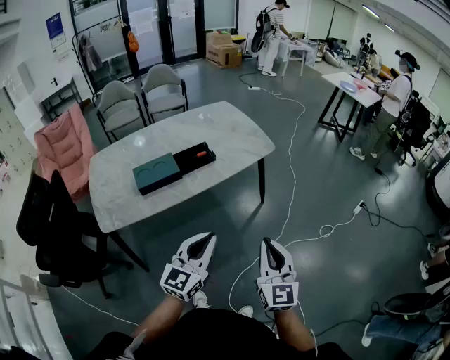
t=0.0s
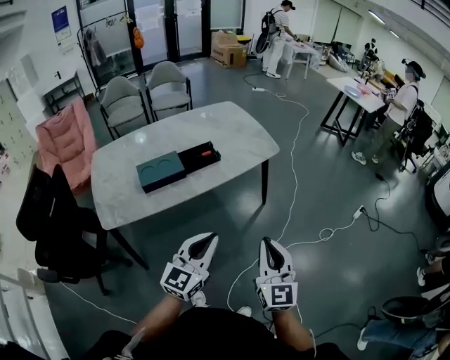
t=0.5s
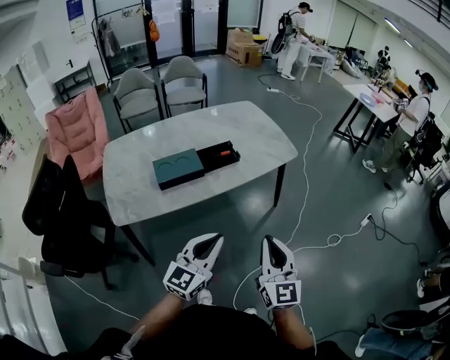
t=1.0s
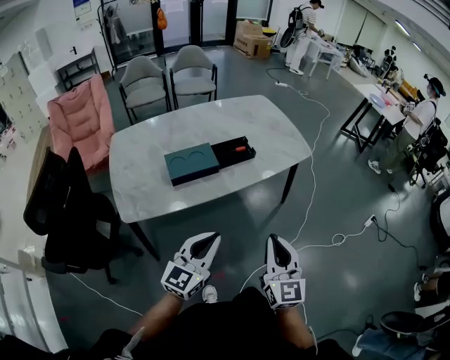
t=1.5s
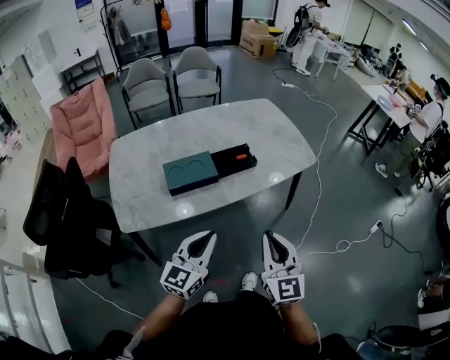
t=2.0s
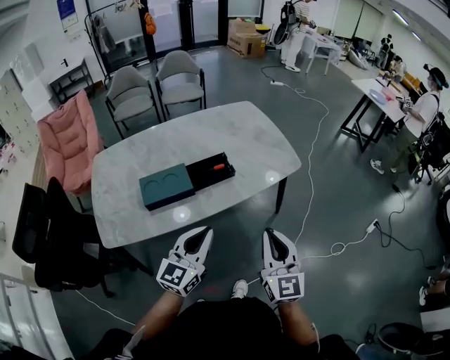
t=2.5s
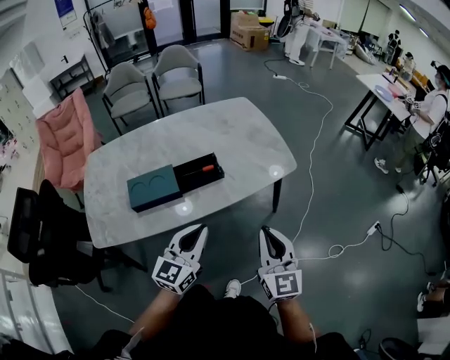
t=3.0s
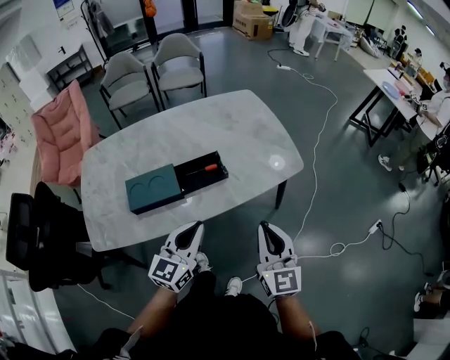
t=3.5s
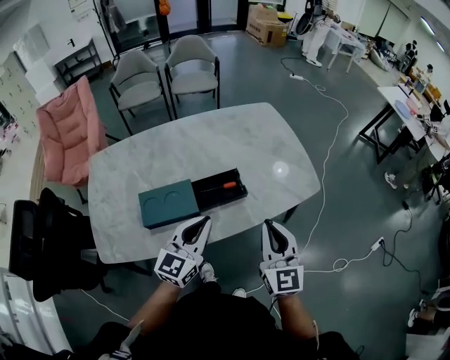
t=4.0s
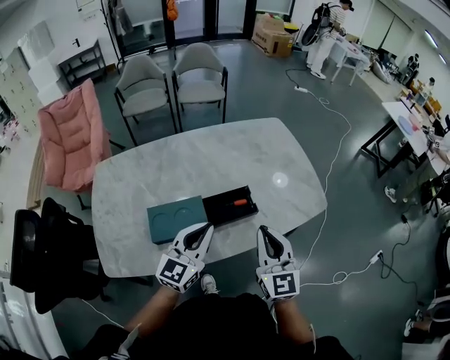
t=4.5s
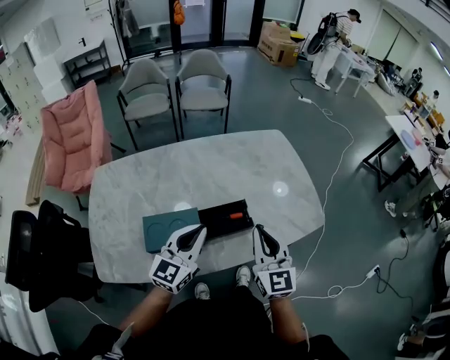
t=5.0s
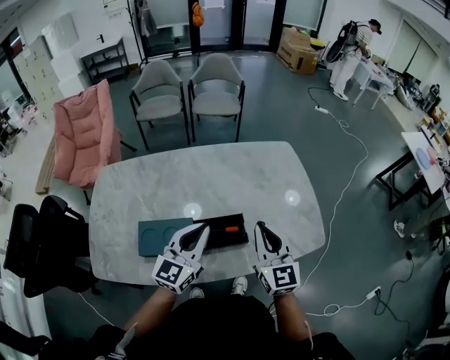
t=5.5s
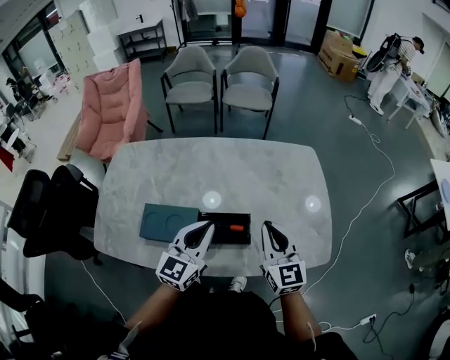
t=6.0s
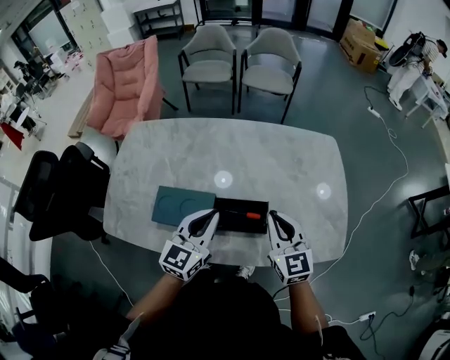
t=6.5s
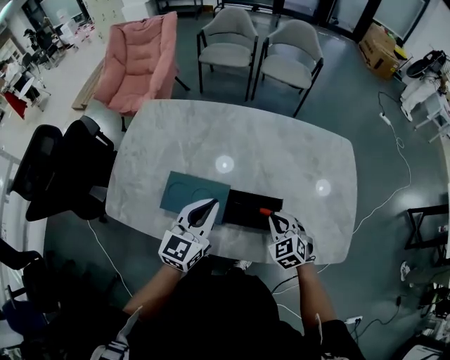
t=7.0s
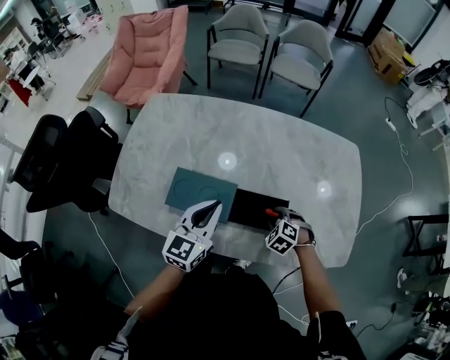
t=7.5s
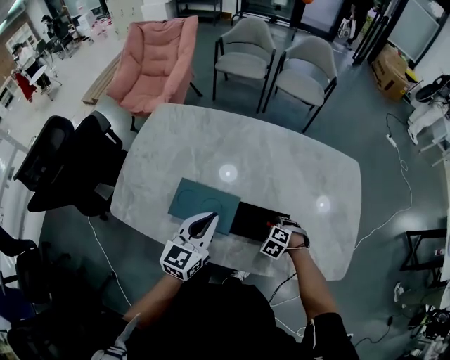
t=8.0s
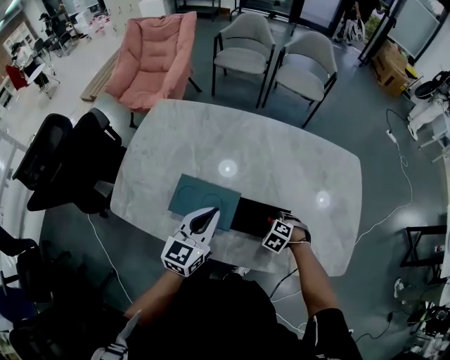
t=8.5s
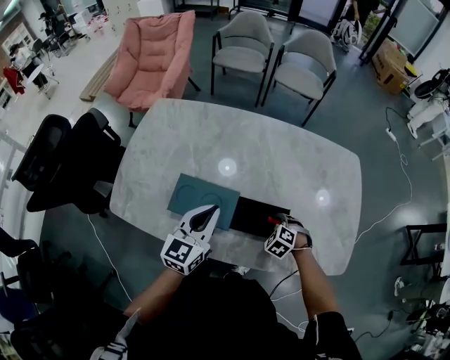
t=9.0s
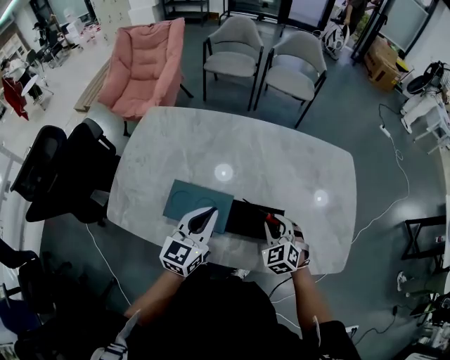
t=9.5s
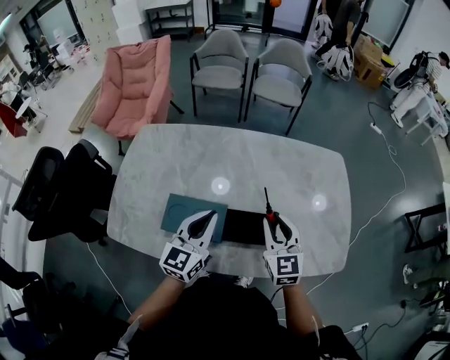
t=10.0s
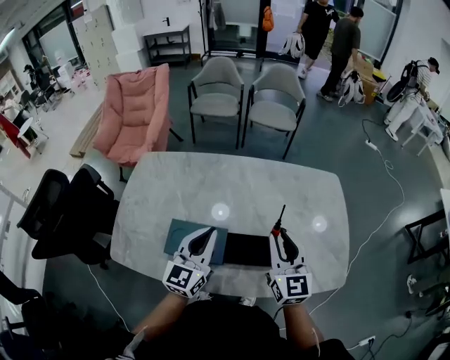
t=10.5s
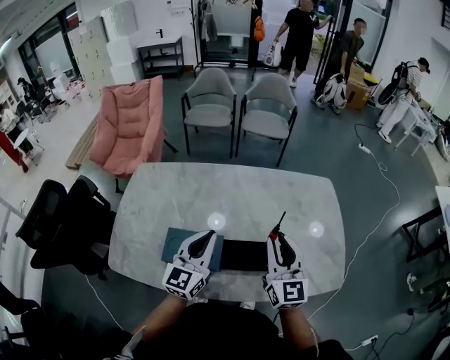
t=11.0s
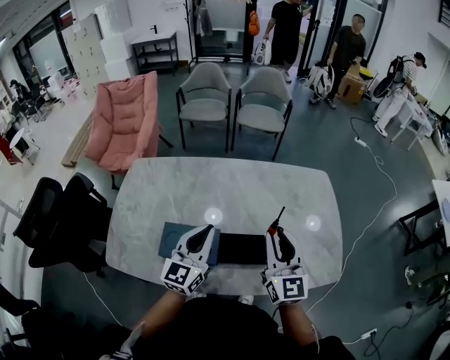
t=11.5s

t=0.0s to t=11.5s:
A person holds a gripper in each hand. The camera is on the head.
t=0.0s to t=2.0s: Both grippers travel together to the left and forward, roughly 20 cm.
t=2.0s to t=4.0s: Both grippers move forward, roughly 25 cm.
t=4.0s to t=6.0s: The right gripper is displaced forward by some 20 cm, and changes its angle by about 30 degrees, while the left gripper moves forward, some 15 cm, and changes its angle by approximately 20 degrees.
t=6.0s to t=7.5s: The right gripper goes about 25 cm downward, angles its fingers downward, by roughly 60 degrees, and opens its fingers. The left gripper goes some 15 cm to the left and downward.
t=7.5s to t=9.5s: The right gripper travels upward by roughly 10 cm, and changes its angle by approximately 30 degrees.
t=9.5s to t=11.5s: The right gripper travels upward by roughly 20 cm, and tips its fingers upward by some 40 degrees; the left gripper goes some 5 cm upward.

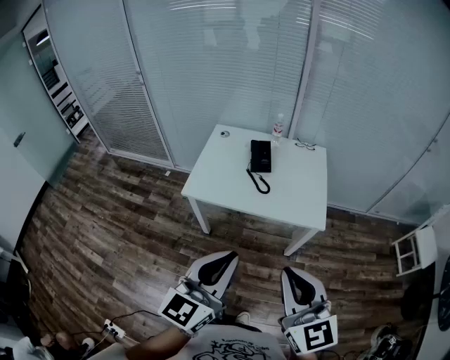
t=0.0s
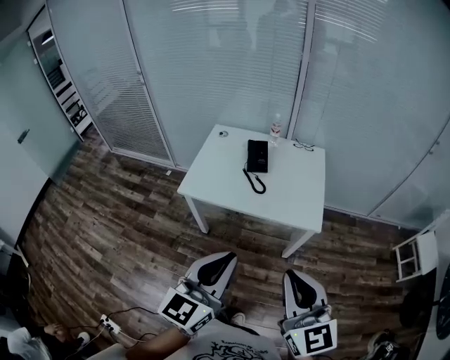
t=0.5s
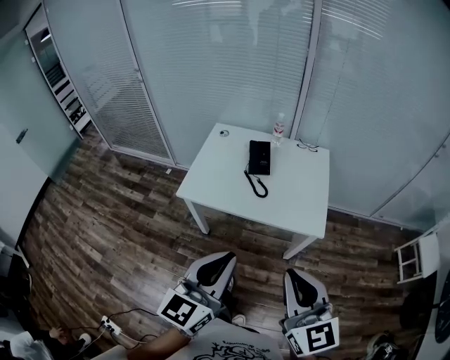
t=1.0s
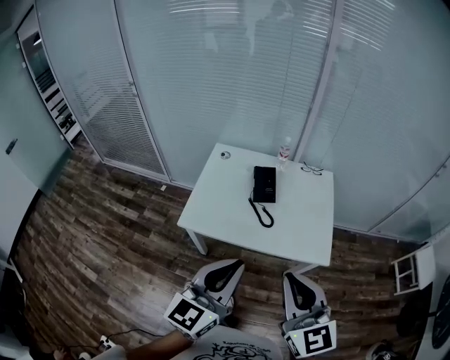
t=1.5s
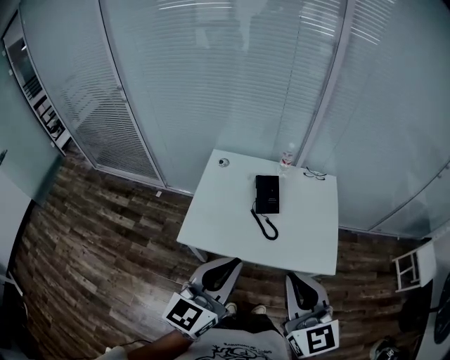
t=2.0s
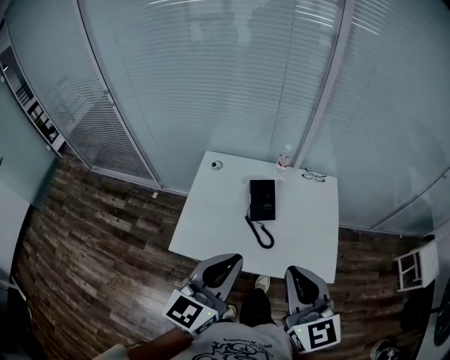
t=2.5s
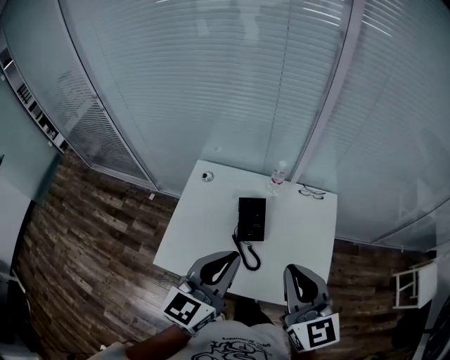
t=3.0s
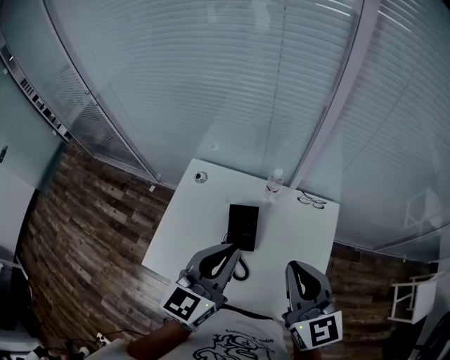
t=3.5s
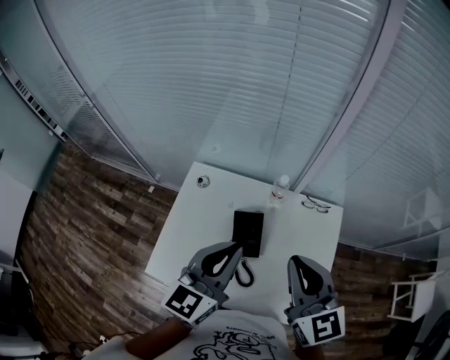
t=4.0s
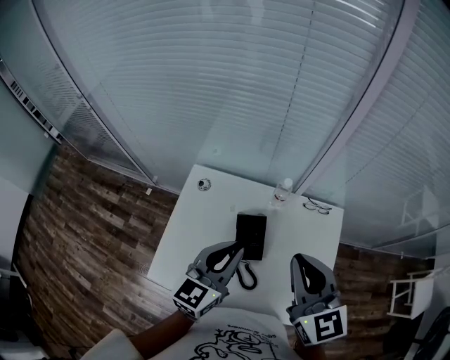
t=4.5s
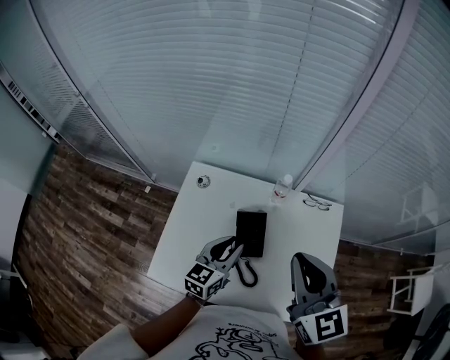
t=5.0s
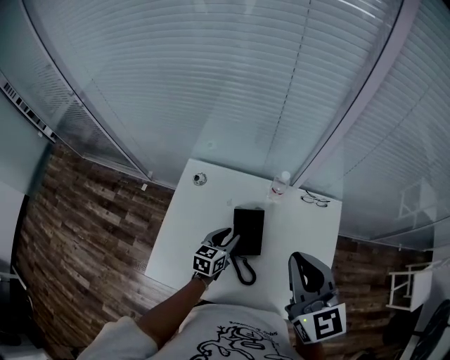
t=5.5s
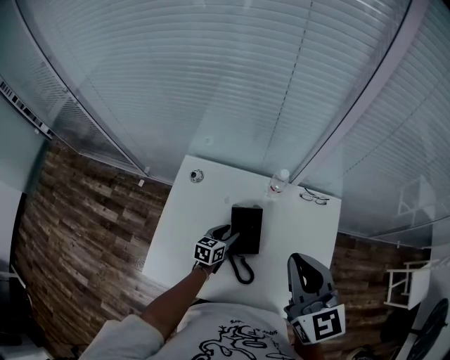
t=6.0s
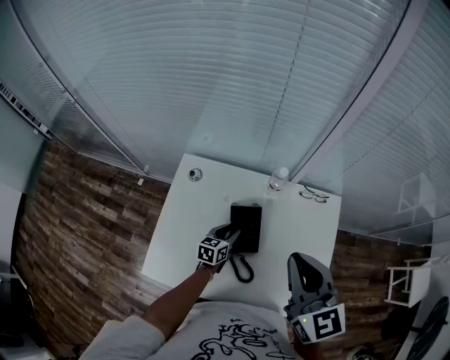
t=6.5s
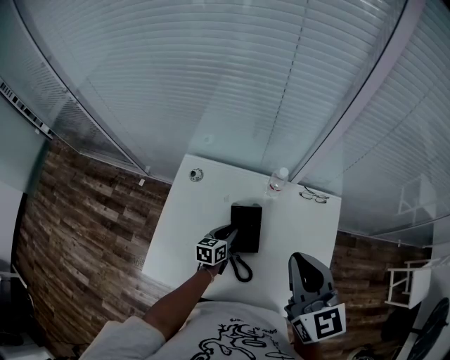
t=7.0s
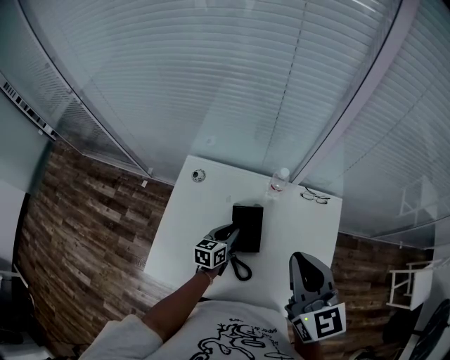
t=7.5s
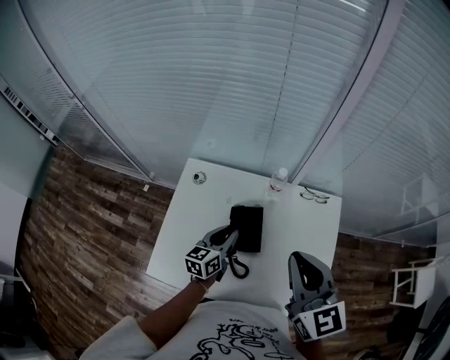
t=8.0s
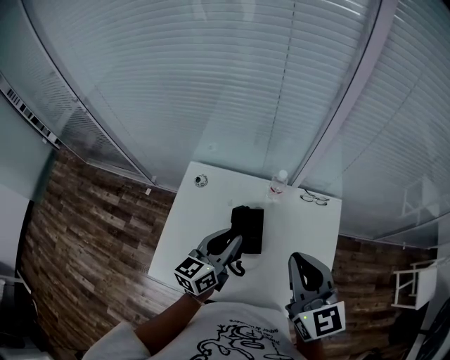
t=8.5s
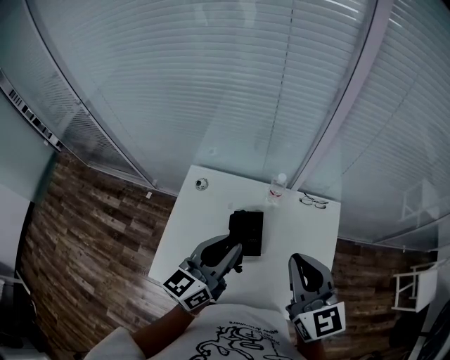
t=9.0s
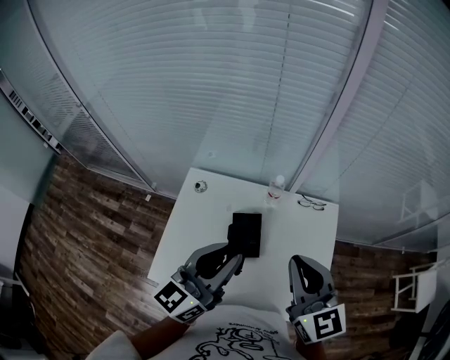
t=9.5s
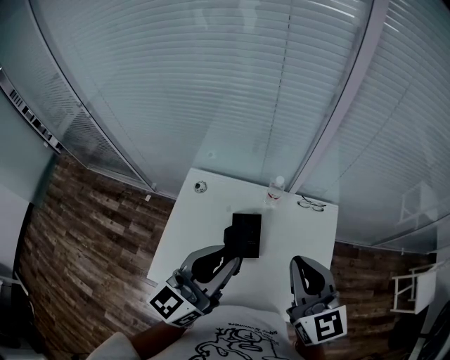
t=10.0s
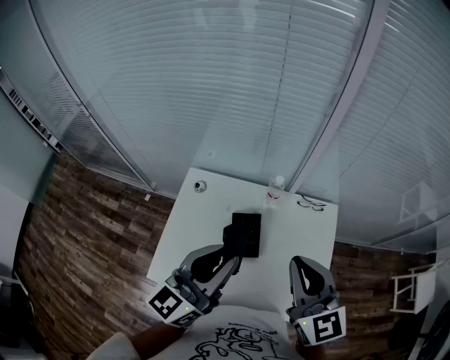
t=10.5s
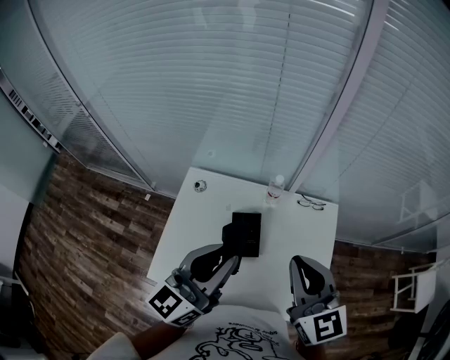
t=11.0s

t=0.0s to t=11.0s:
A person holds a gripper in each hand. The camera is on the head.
t=0.0s to t=2.0s: The grippers both shift forward by about 25 cm.
t=2.0s to t=3.5s: Both grippers travel together forward and to the right, roughly 35 cm.
t=3.5s to t=5.5s: The right gripper goes approximately 5 cm to the left and forward. The left gripper goes about 30 cm downward, swivels approximately 30 degrees, and opens its fingers.
t=7.5s to t=9.0s: The left gripper moves upward, approximately 30 cm, and changes its angle by some 30 degrees.
t=9.0s to t=11.0s: The left gripper shifts some 5 cm upward.

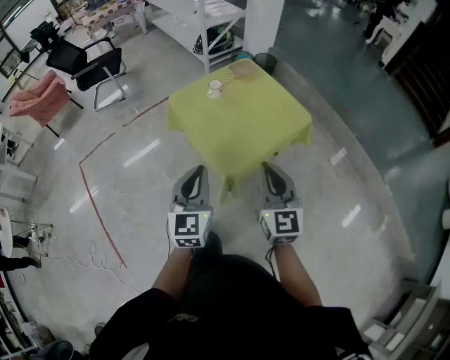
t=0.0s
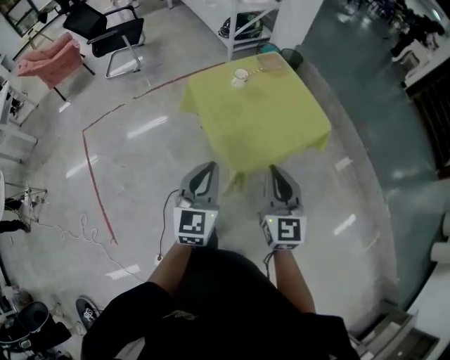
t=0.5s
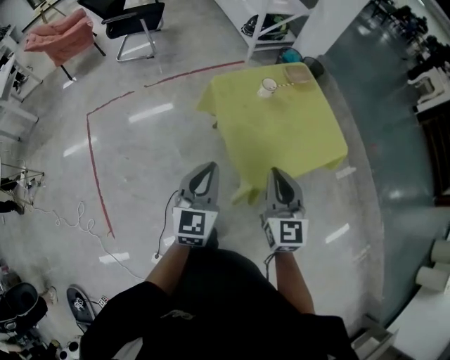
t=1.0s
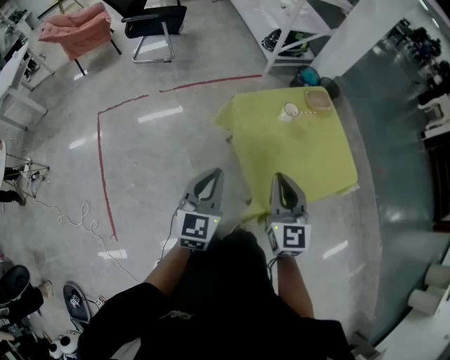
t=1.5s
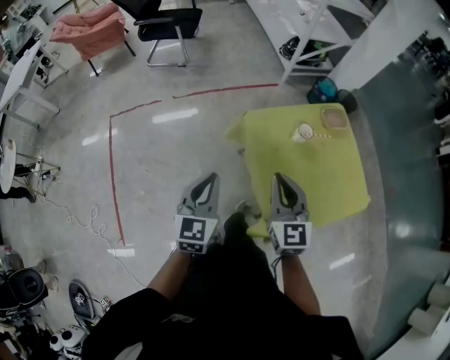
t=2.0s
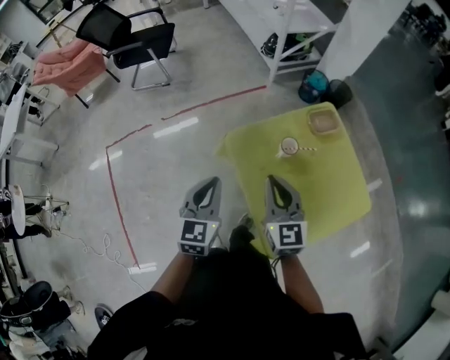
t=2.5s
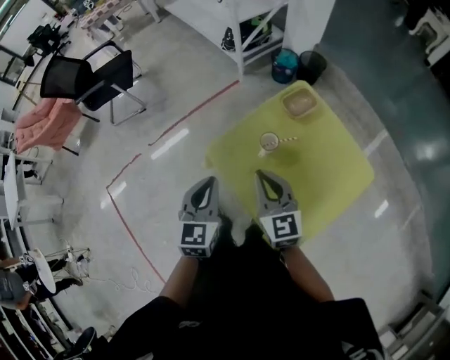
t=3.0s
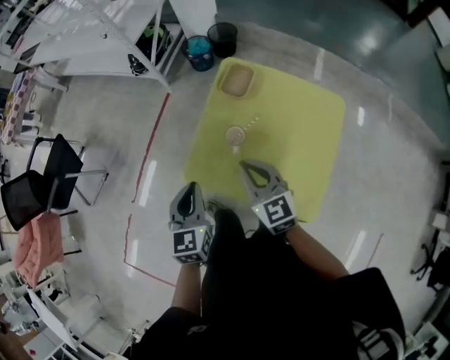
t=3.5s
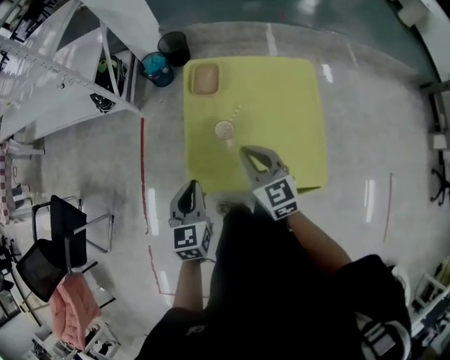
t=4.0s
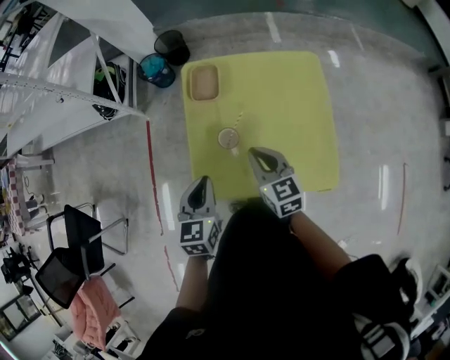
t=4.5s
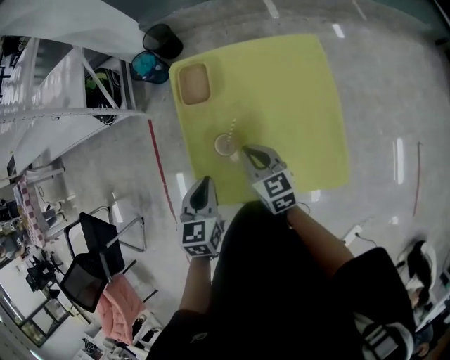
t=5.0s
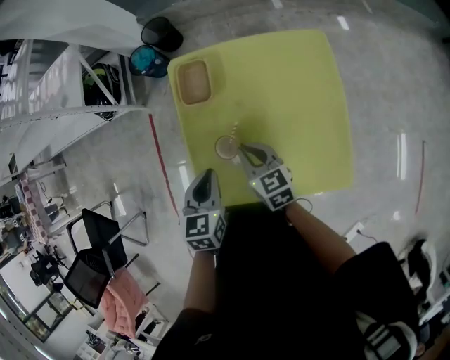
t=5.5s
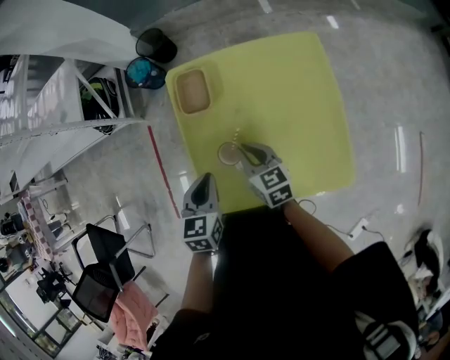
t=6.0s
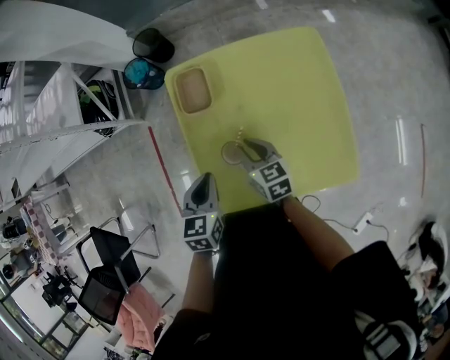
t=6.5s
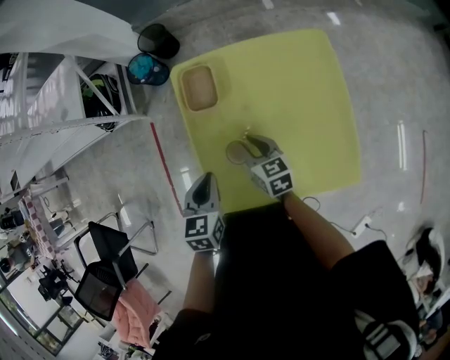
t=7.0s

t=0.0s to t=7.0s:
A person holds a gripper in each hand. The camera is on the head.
t=0.0s to t=2.0s: The grippers both shift forward and to the left by approximately 35 cm. The right gripper changes its angle by about 20 degrees.
t=2.0s to t=3.5s: The right gripper ends up some 25 cm from where it was, and turns by approximately 40 degrees. The left gripper changes place by about 35 cm, and turns by some 40 degrees.
t=3.5s to t=5.0s: The right gripper shifts about 10 cm downward, and turns by about 30 degrees. The left gripper shifts by about 15 cm, and swivels some 30 degrees.
t=5.0s to t=7.0s: The left gripper moves approximately 5 cm. Meanwhile the right gripper heads downward and forward, covering approximately 10 cm, and opens.
